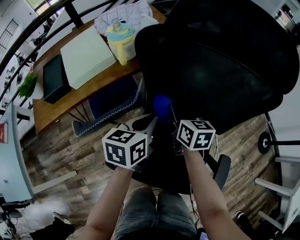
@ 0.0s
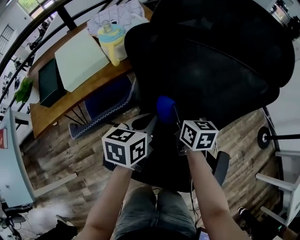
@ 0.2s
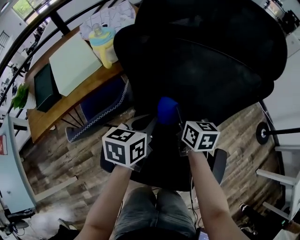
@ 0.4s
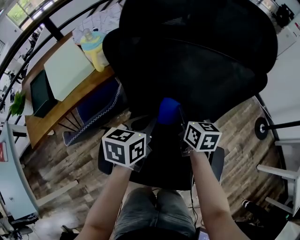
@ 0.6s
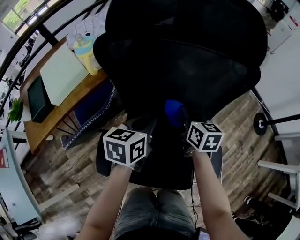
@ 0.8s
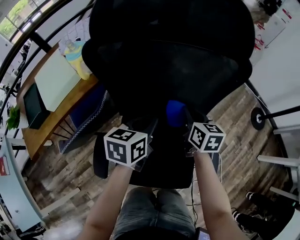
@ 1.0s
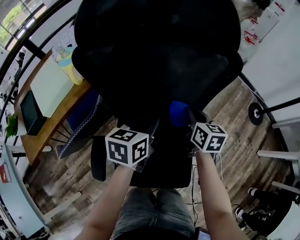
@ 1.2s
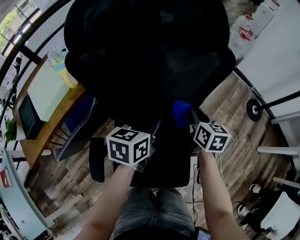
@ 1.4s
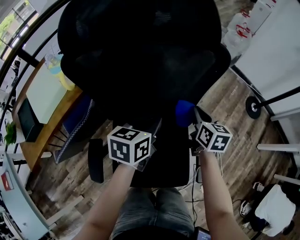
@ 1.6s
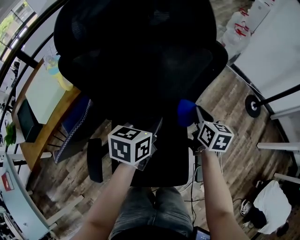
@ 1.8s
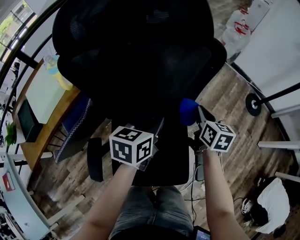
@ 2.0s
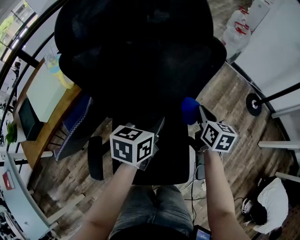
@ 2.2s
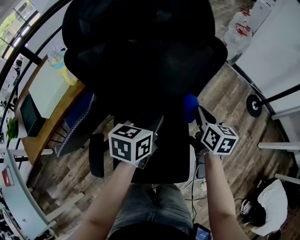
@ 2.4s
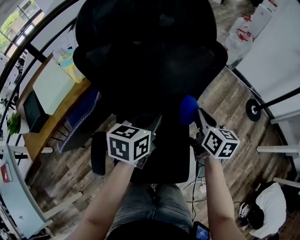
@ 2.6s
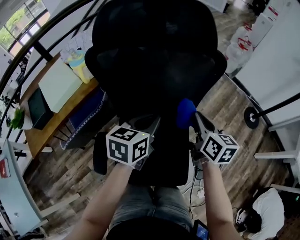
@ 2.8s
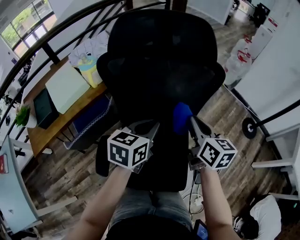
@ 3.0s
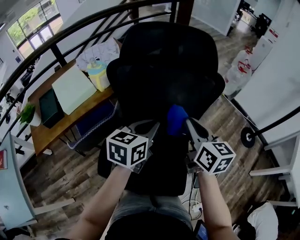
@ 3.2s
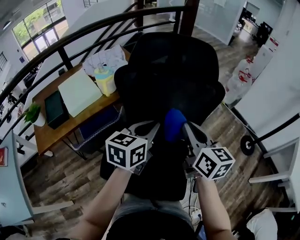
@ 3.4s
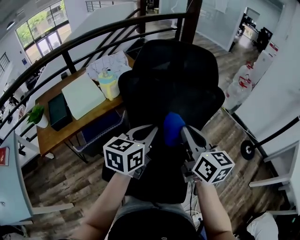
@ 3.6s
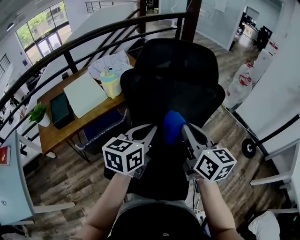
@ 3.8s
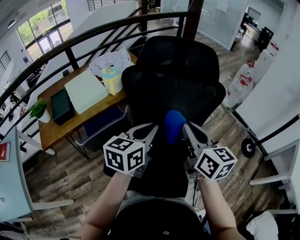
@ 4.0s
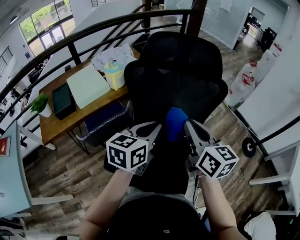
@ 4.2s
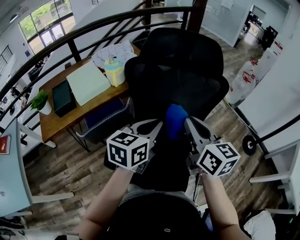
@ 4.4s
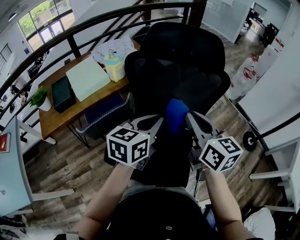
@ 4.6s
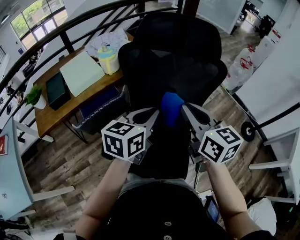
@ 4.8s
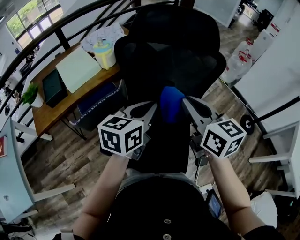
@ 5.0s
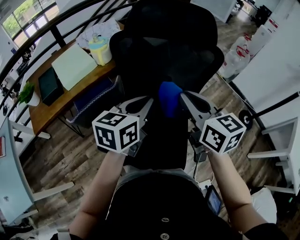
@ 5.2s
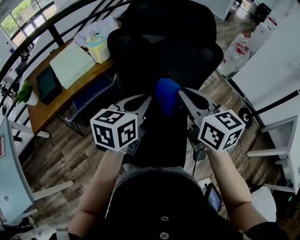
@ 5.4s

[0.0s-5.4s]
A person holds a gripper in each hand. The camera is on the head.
0.0s to 1.4s: The grippers both shift to the right by about 20 cm. The left gripper swivels approximately 20 degrees, while the right gripper rotates about 30 degrees.
1.4s to 2.8s: The right gripper goes roughly 10 cm upward and backward; the left gripper goes approximately 5 cm upward.
2.8s to 4.0s: The left gripper is displaced upward, backward and to the left by roughly 15 cm. Meanwhile the right gripper shifts some 20 cm upward, to the left and backward, and changes its angle by about 20 degrees.
4.0s to 5.4s: The grippers stay close to where they were, moving slightly.

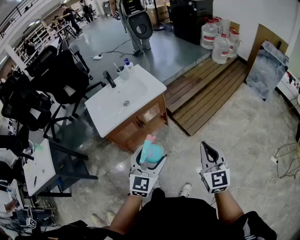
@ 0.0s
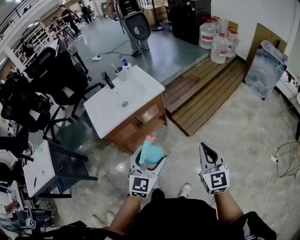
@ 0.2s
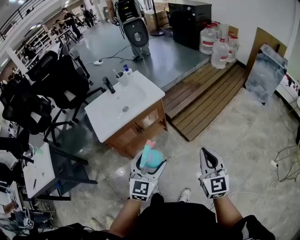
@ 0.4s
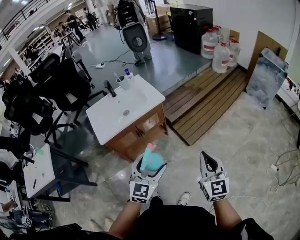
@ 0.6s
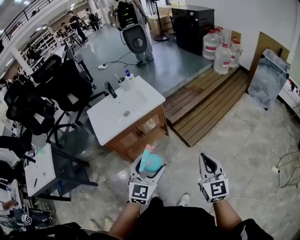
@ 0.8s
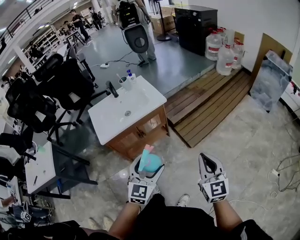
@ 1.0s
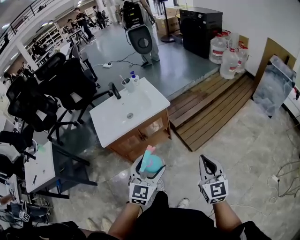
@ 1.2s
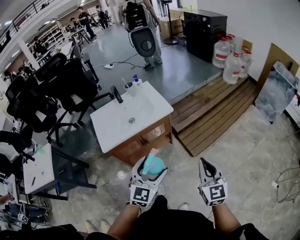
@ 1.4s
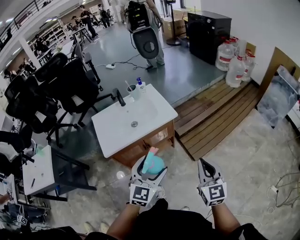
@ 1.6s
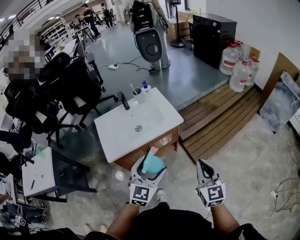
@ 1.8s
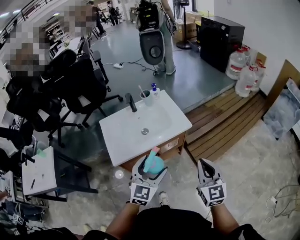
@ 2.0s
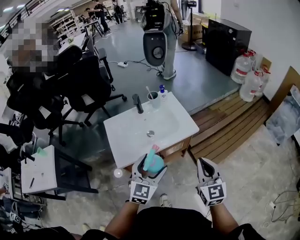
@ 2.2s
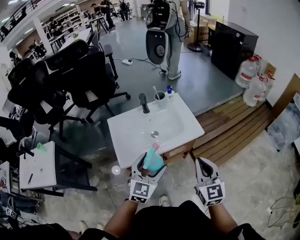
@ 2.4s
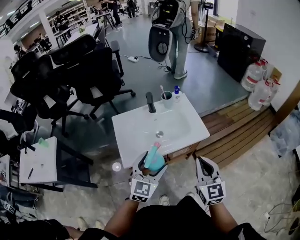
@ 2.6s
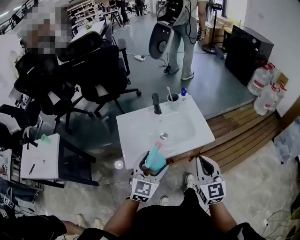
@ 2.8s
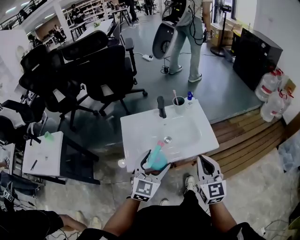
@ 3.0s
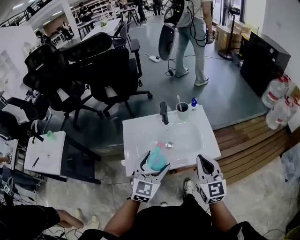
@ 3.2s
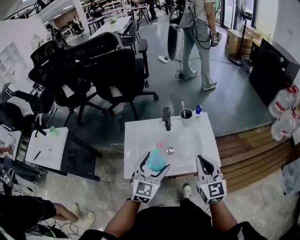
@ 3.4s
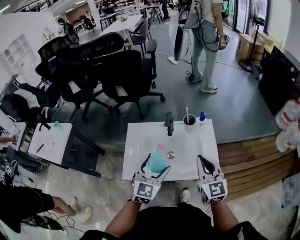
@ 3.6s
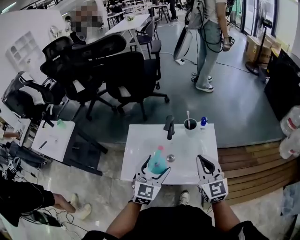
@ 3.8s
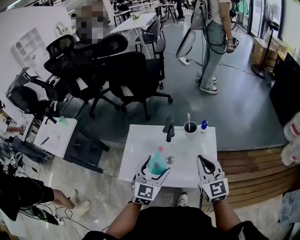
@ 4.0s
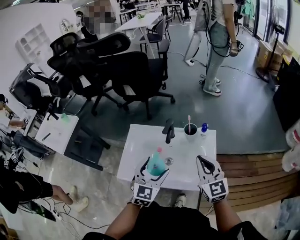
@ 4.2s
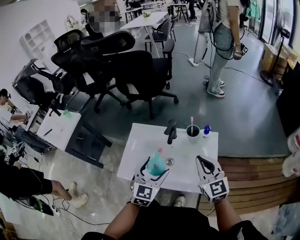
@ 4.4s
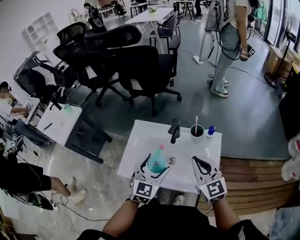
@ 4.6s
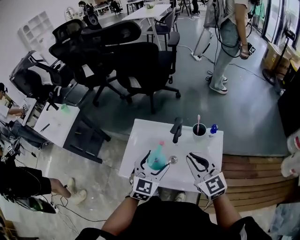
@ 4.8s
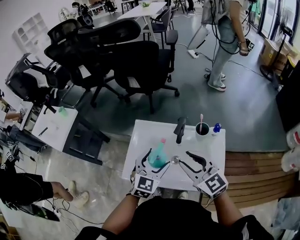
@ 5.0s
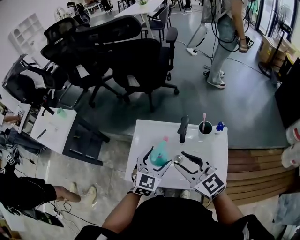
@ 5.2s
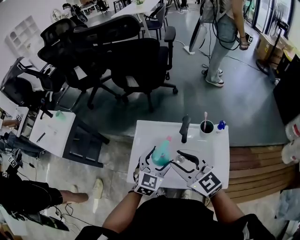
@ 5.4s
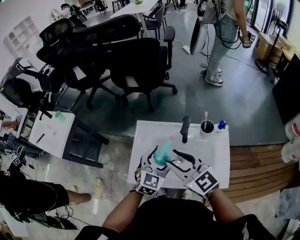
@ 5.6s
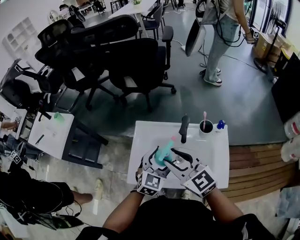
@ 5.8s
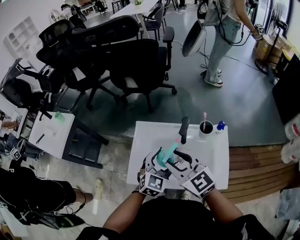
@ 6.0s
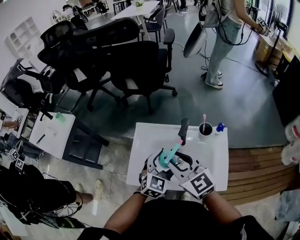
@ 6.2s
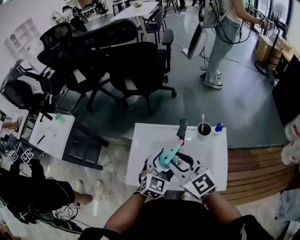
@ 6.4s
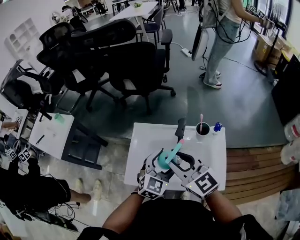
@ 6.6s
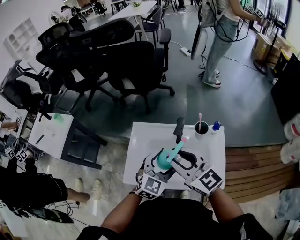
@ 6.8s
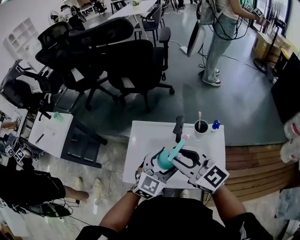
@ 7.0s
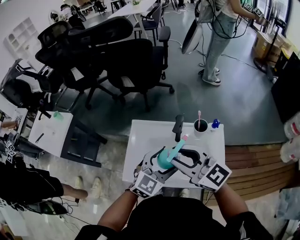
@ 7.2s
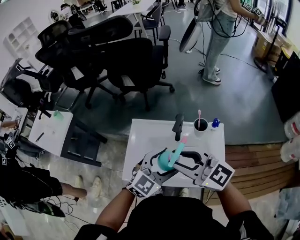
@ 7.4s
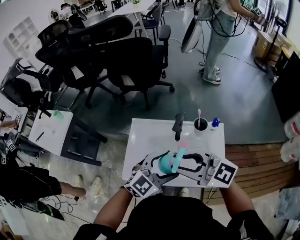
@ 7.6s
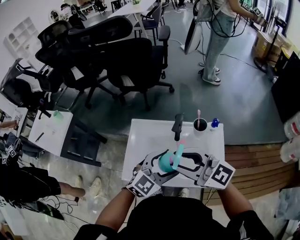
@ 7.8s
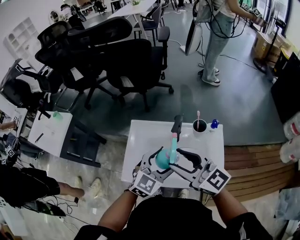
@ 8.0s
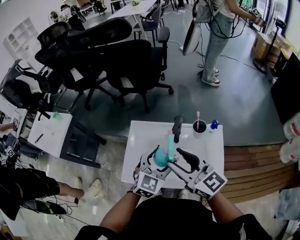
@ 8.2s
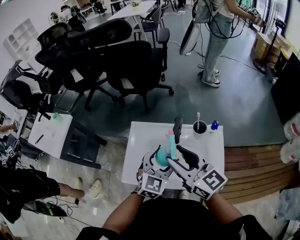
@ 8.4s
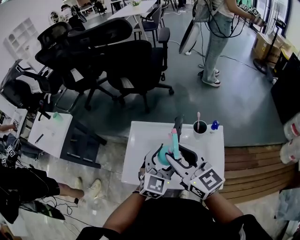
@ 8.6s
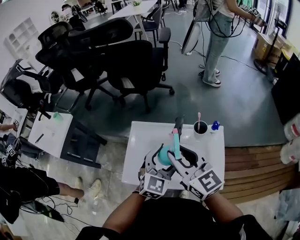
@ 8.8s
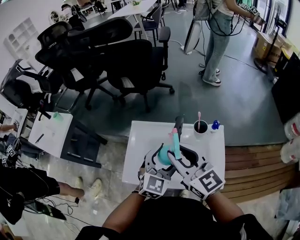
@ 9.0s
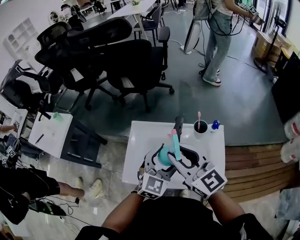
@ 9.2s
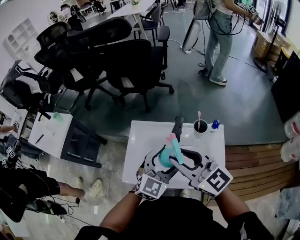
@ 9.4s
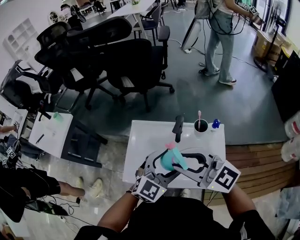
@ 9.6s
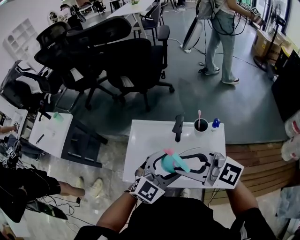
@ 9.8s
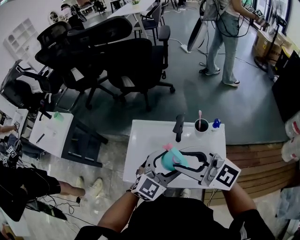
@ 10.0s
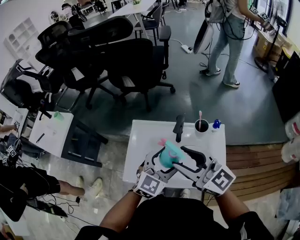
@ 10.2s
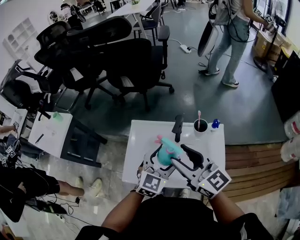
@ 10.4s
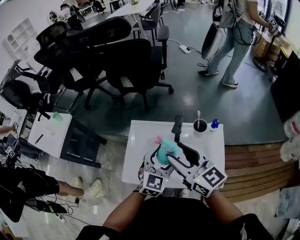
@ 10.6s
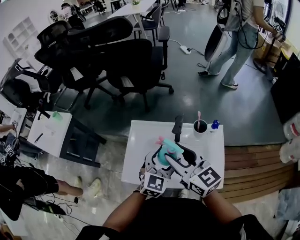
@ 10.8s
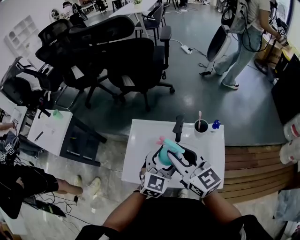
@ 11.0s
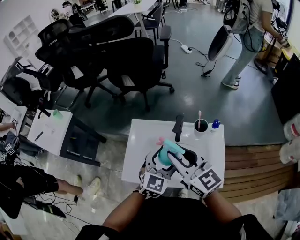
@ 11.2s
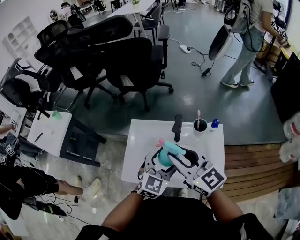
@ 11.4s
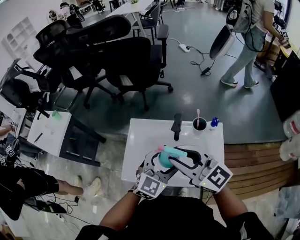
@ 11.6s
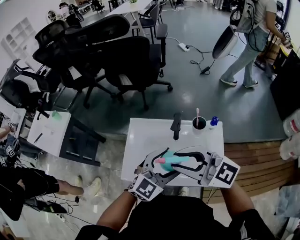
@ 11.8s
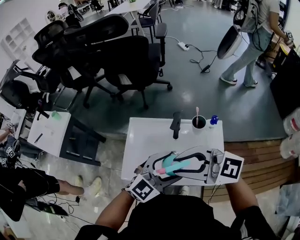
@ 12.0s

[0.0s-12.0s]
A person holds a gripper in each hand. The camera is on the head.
0.0s to 1.6s: The two grippers go approximately 10 cm forward.
1.6s to 3.0s: The right gripper goes approximately 30 cm forward and to the left, while the left gripper shifts roughly 30 cm to the left and forward.
3.0s to 4.4s: The right gripper shifts by about 25 cm, and swivels roughly 30 degrees. Meanwhile the left gripper ends up approximately 15 cm from where it was, and swivels roughly 30 degrees.
4.4s to 6.0s: The right gripper heads to the left, covering about 20 cm, and opens up. The left gripper shifts approximately 10 cm forward and downward.
6.0s to 7.6s: The left gripper ends up some 10 cm from where it was, and turns by roughly 30 degrees; the right gripper moves approximately 10 cm, and swivels approximately 30 degrees.
7.6s to 9.0s: The right gripper moves some 5 cm, and turns by some 30 degrees. The left gripper moves about 5 cm, and rotates some 30 degrees.
10.4s to 12.0s: The left gripper ends up approximately 10 cm from where it was, and turns by roughly 30 degrees. The right gripper ends up some 5 cm from where it was, and swivels approximately 40 degrees.

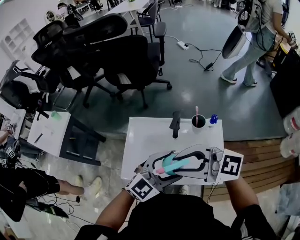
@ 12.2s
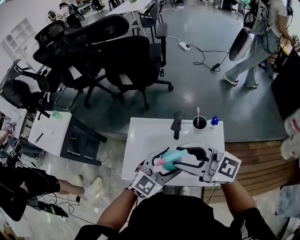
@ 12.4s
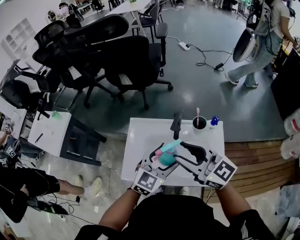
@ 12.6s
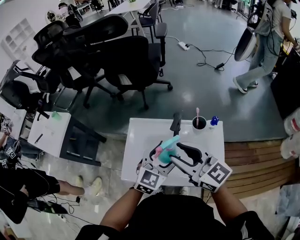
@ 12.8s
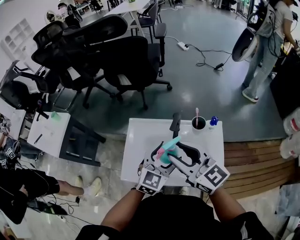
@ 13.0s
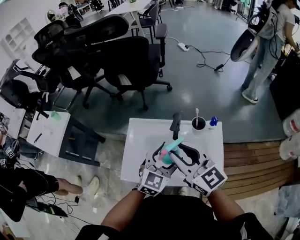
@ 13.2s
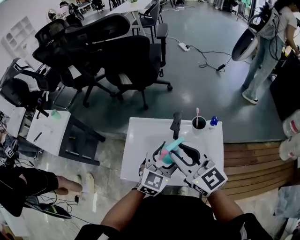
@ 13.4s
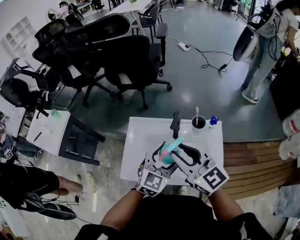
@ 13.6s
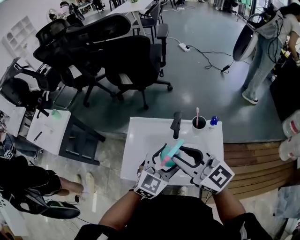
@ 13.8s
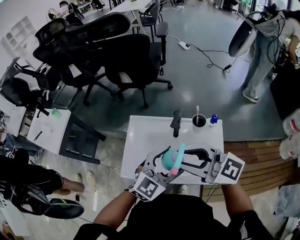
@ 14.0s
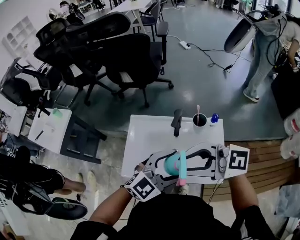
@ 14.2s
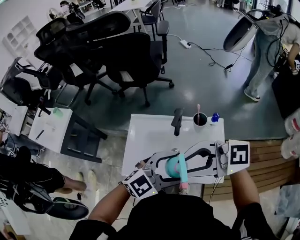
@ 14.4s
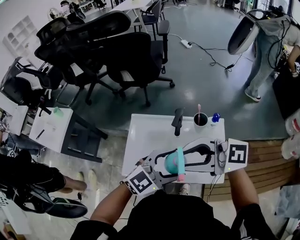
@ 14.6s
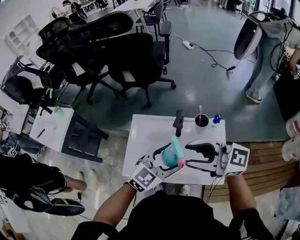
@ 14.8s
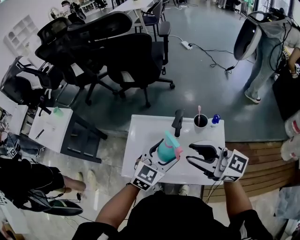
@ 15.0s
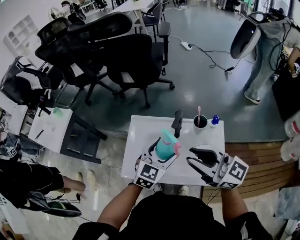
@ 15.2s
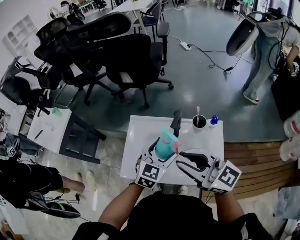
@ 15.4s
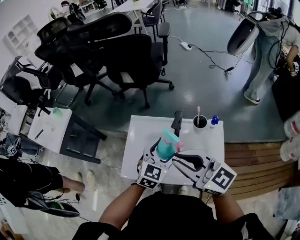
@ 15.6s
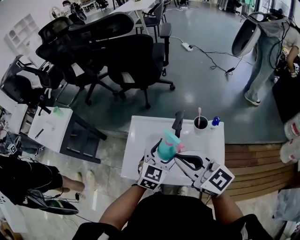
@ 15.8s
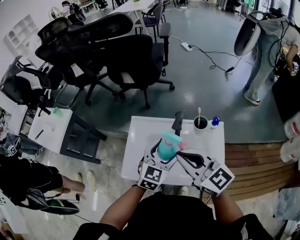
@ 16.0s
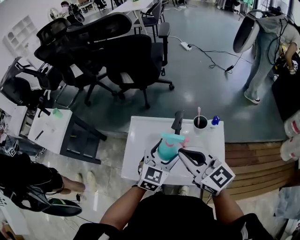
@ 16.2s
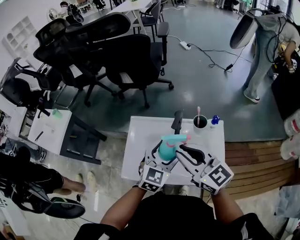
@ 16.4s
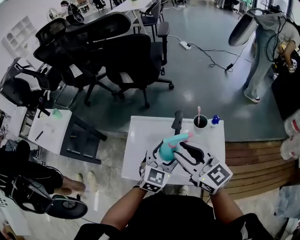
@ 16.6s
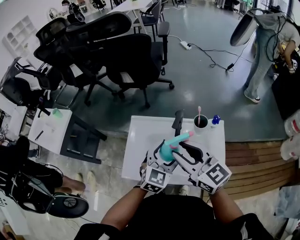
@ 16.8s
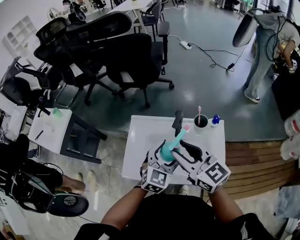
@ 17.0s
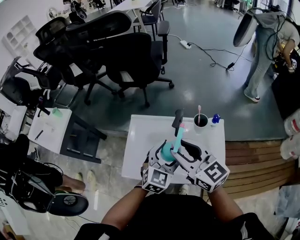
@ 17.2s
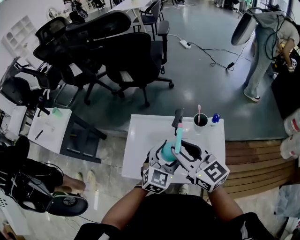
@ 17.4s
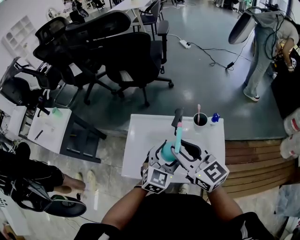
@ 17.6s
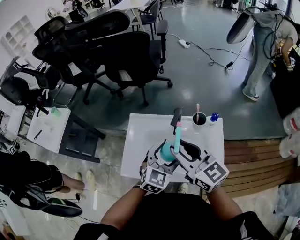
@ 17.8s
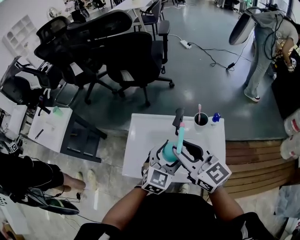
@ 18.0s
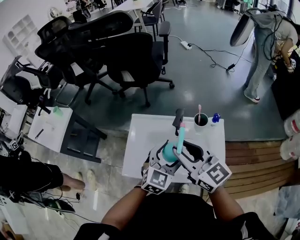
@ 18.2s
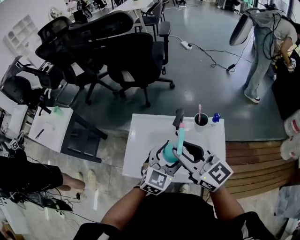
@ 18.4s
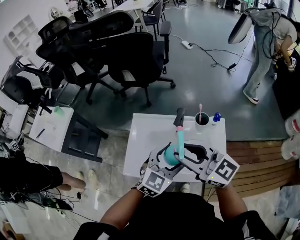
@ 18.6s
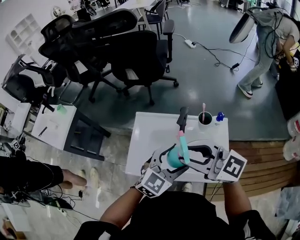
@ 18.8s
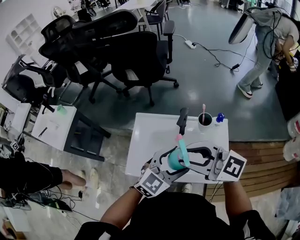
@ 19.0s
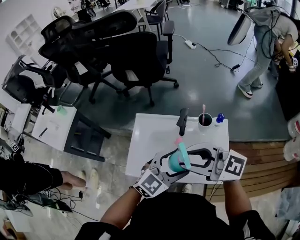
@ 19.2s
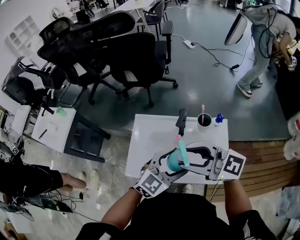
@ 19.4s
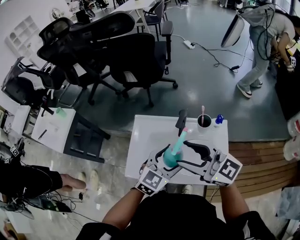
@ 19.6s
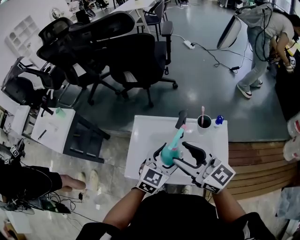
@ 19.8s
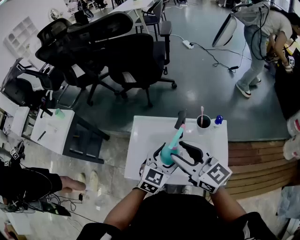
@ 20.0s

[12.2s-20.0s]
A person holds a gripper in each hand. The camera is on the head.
12.2s to 13.8s: The right gripper changes its angle by approximately 30 degrees.
13.8s to 15.4s: The left gripper ends up about 5 cm from where it was.
15.4s to 16.8s: The right gripper moves some 5 cm, and closes, then opens again.
16.8s to 18.4s: The grippers make only small movements.
